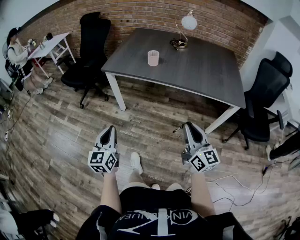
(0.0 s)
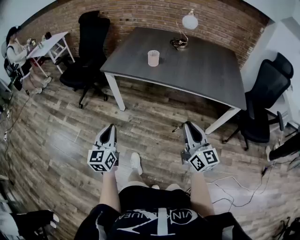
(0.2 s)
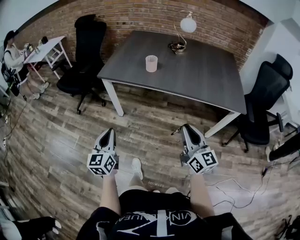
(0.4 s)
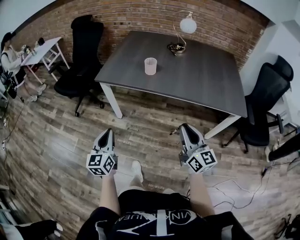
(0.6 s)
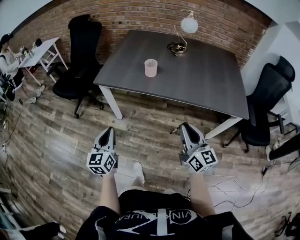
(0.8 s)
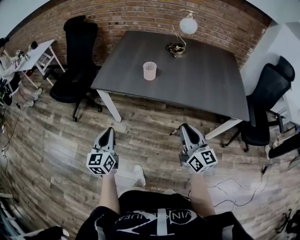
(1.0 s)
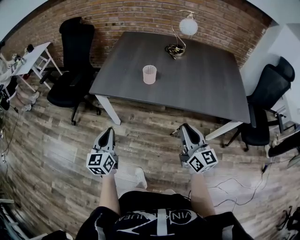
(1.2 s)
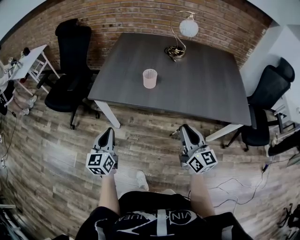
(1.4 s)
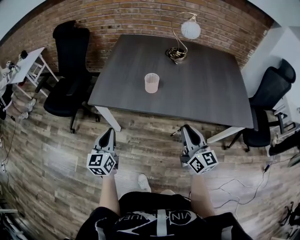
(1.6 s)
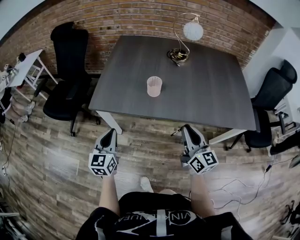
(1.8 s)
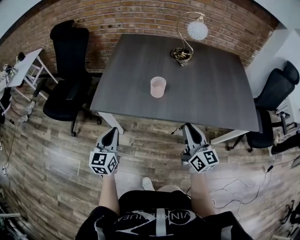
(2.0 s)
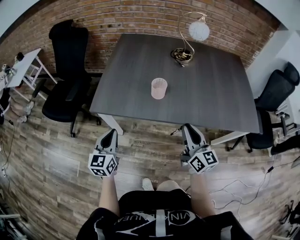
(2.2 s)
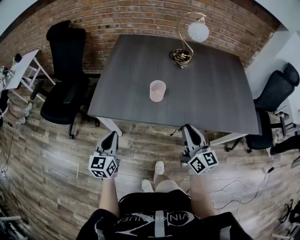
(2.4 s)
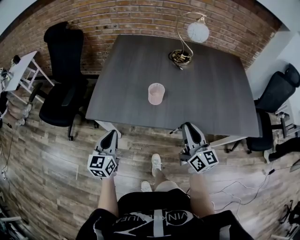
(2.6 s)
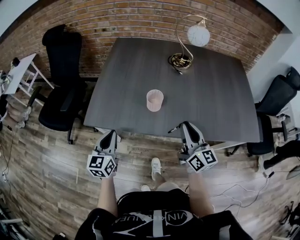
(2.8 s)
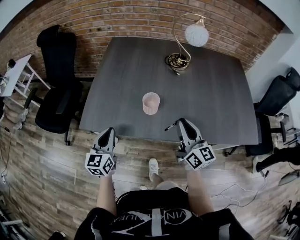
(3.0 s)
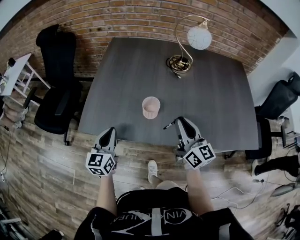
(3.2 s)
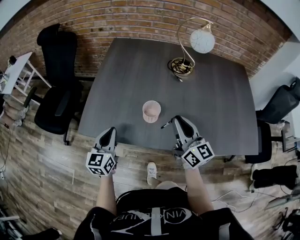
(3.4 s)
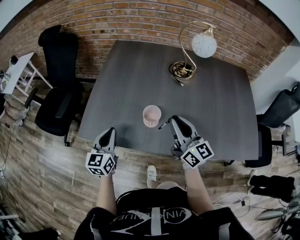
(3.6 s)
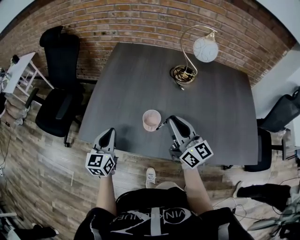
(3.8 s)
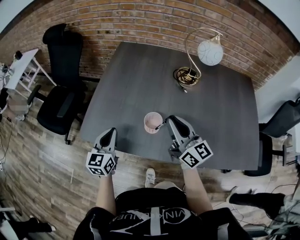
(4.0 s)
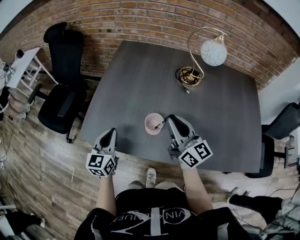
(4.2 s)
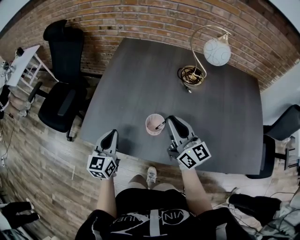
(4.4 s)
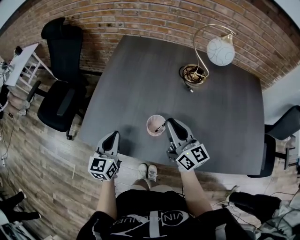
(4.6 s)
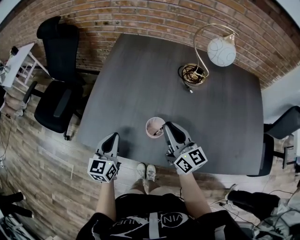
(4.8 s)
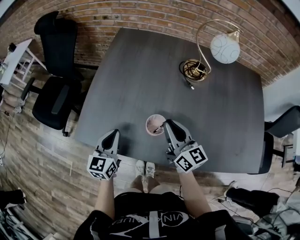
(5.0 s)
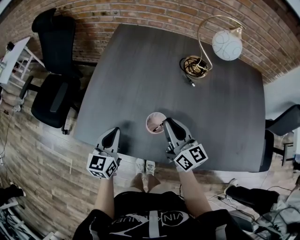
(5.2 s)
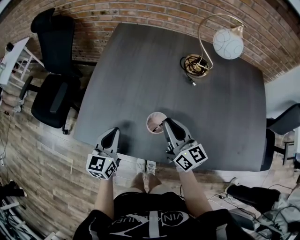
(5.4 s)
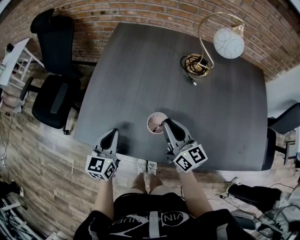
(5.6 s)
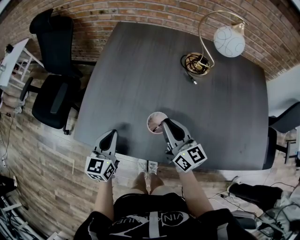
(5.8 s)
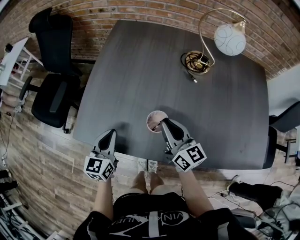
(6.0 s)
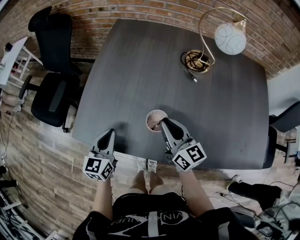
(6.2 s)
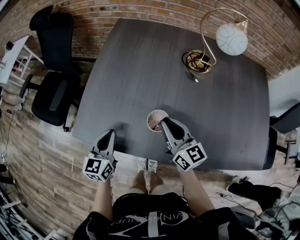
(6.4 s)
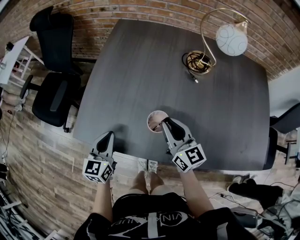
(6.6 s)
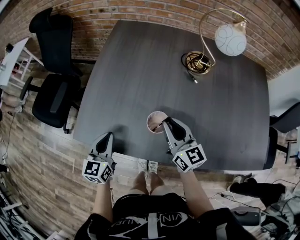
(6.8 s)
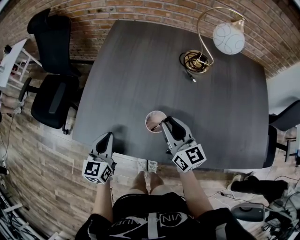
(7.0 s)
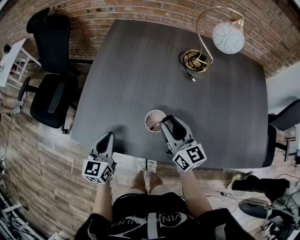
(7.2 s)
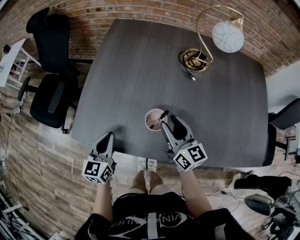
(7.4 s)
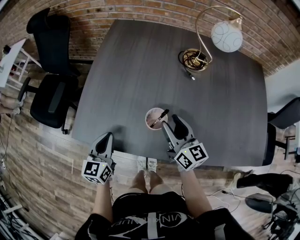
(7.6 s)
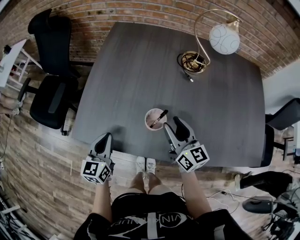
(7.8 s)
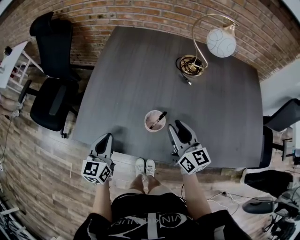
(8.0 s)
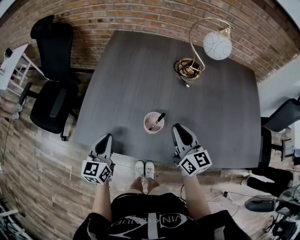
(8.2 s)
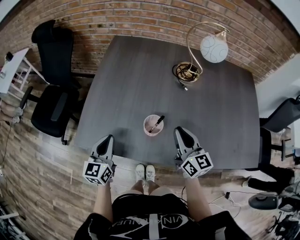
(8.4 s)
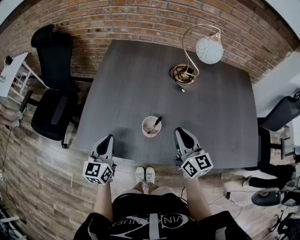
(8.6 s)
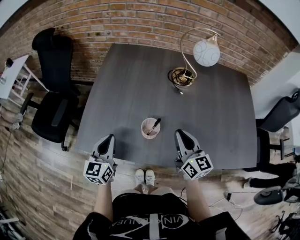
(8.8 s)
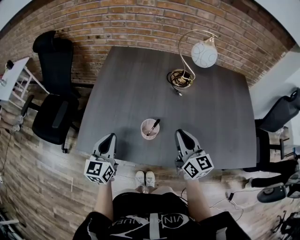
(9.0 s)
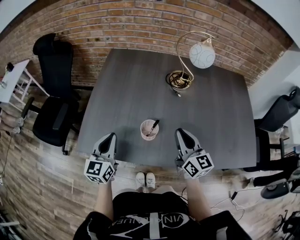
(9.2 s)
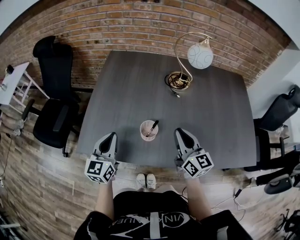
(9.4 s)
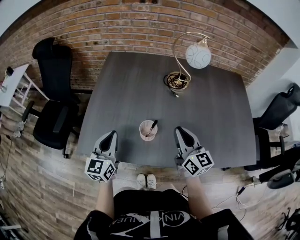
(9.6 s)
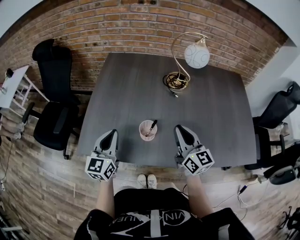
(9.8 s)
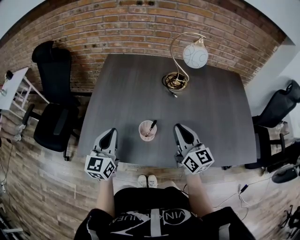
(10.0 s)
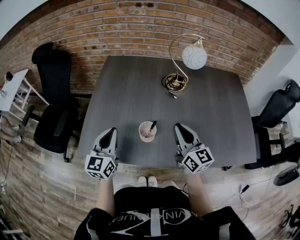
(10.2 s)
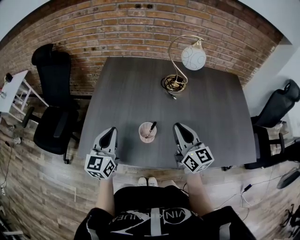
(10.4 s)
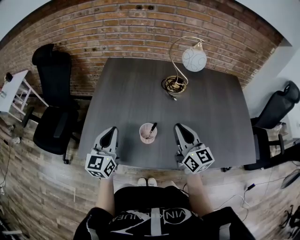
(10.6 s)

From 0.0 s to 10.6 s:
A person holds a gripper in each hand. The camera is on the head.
From 0.0 s to 1.6 s: Both grippers move forward, about 30 cm.
From 1.6 s to 3.0 s: Both grippers travel together forward, about 20 cm.
From 3.0 s to 4.6 s: The left gripper heads forward, covering about 10 cm, while the right gripper heads forward, covering about 15 cm.
From 4.6 s to 6.0 s: The right gripper shifts roughly 5 cm downward.
From 6.0 s to 7.6 s: The right gripper opens.
From 7.6 s to 9.0 s: The right gripper moves upward and to the right, about 10 cm, and closes up, while the left gripper shifts roughly 10 cm upward.
From 9.0 s to 10.6 s: The left gripper moves upward, roughly 5 cm.

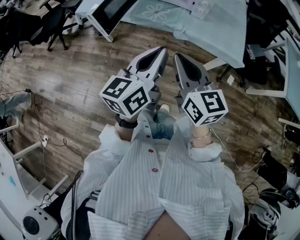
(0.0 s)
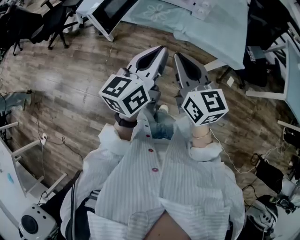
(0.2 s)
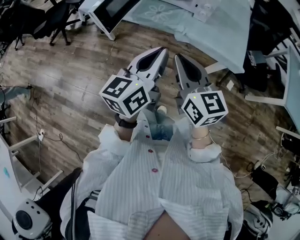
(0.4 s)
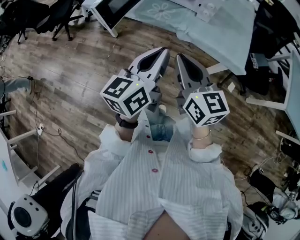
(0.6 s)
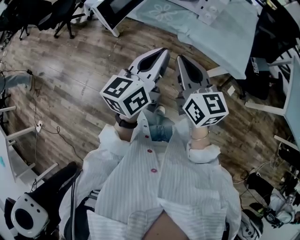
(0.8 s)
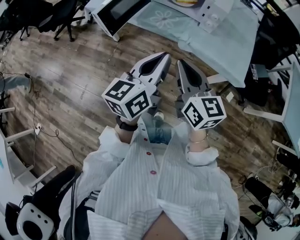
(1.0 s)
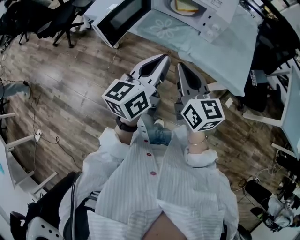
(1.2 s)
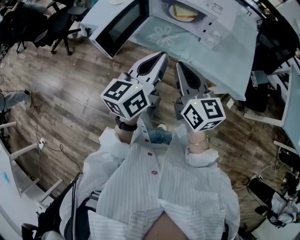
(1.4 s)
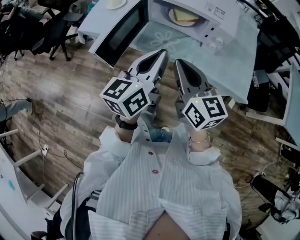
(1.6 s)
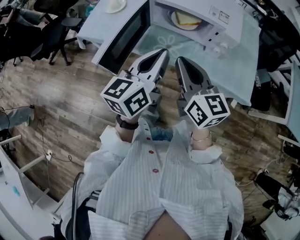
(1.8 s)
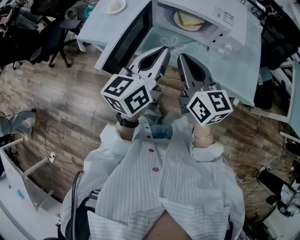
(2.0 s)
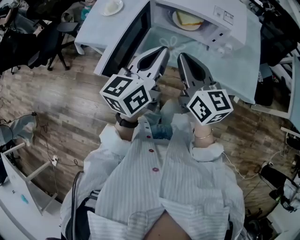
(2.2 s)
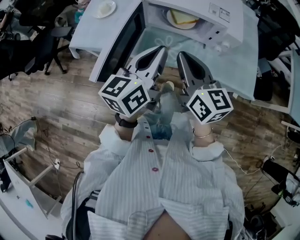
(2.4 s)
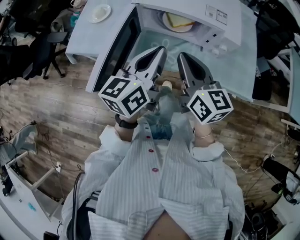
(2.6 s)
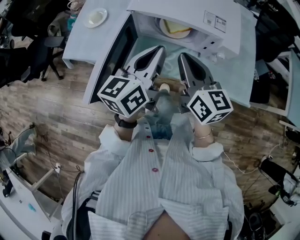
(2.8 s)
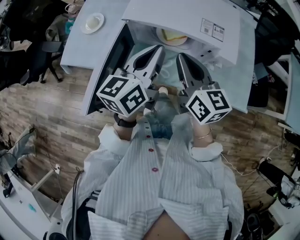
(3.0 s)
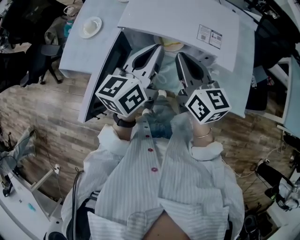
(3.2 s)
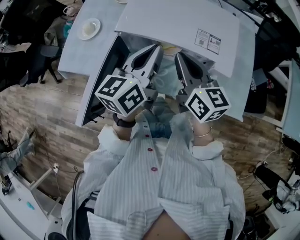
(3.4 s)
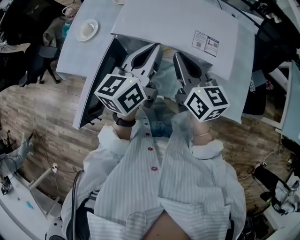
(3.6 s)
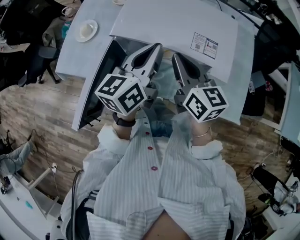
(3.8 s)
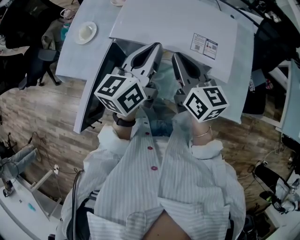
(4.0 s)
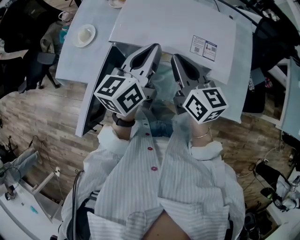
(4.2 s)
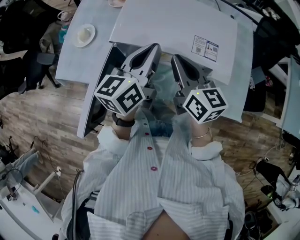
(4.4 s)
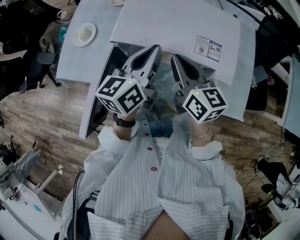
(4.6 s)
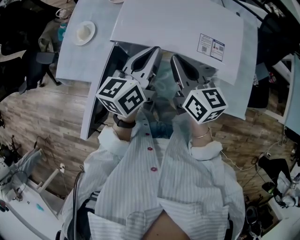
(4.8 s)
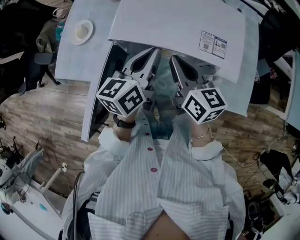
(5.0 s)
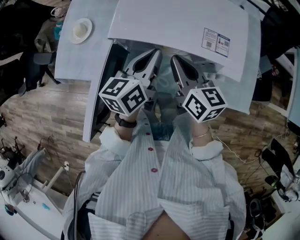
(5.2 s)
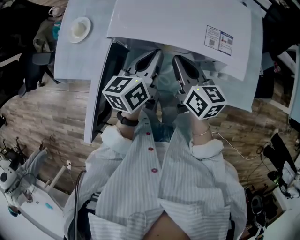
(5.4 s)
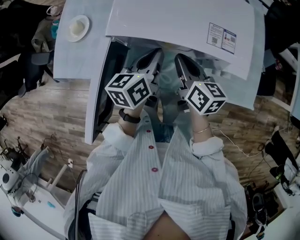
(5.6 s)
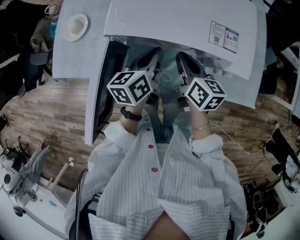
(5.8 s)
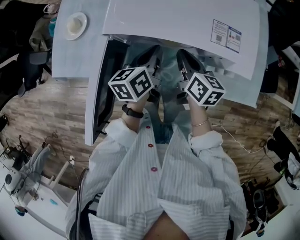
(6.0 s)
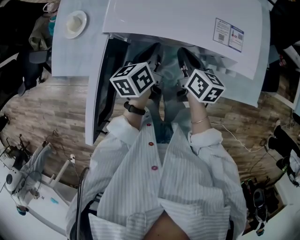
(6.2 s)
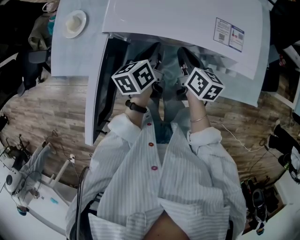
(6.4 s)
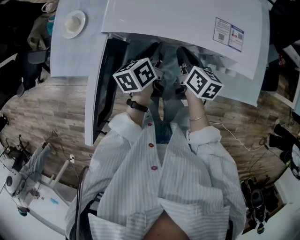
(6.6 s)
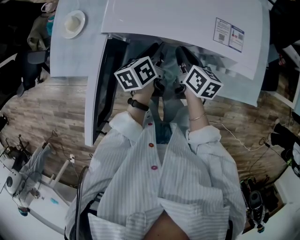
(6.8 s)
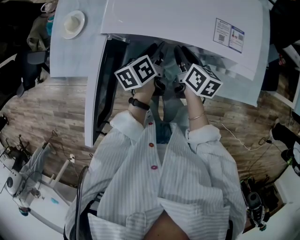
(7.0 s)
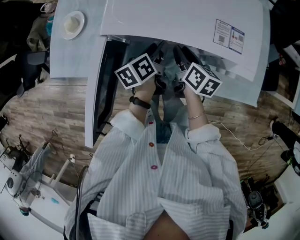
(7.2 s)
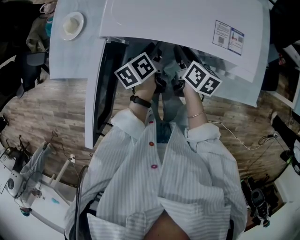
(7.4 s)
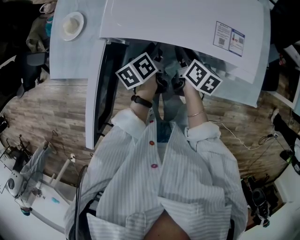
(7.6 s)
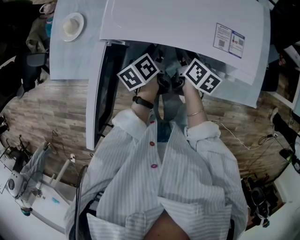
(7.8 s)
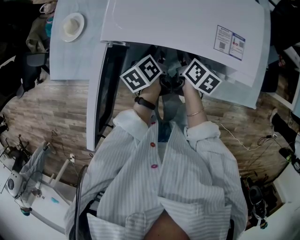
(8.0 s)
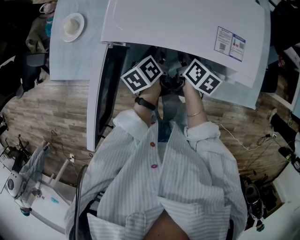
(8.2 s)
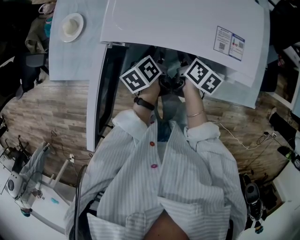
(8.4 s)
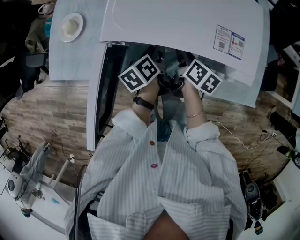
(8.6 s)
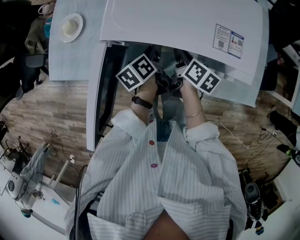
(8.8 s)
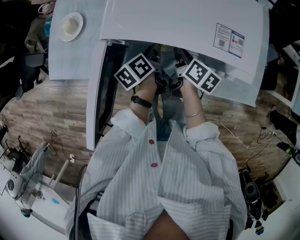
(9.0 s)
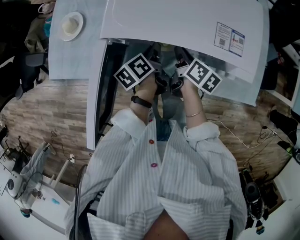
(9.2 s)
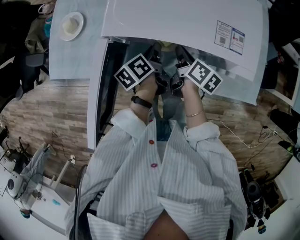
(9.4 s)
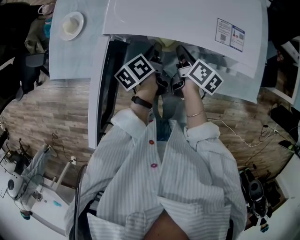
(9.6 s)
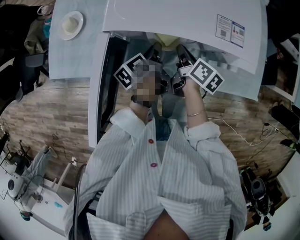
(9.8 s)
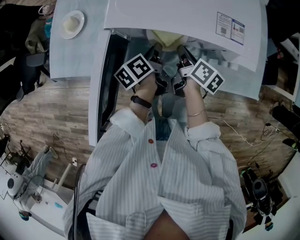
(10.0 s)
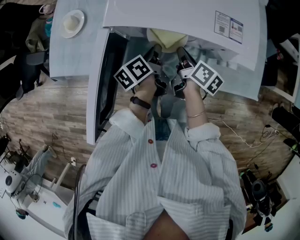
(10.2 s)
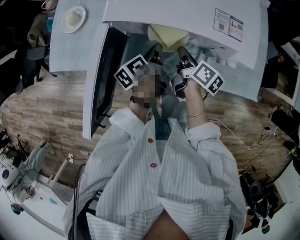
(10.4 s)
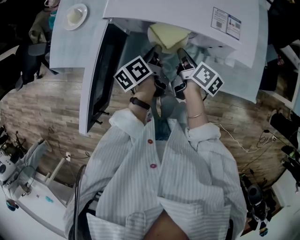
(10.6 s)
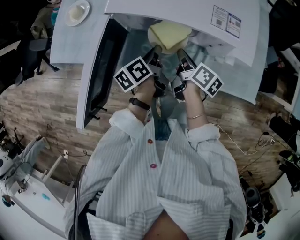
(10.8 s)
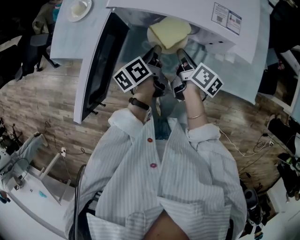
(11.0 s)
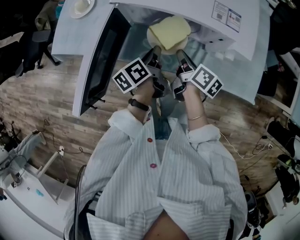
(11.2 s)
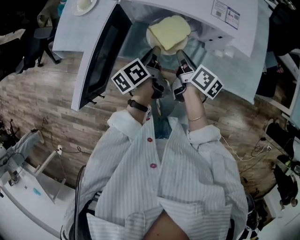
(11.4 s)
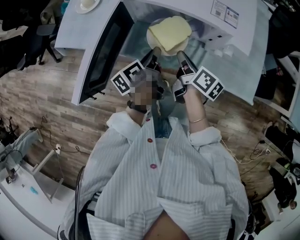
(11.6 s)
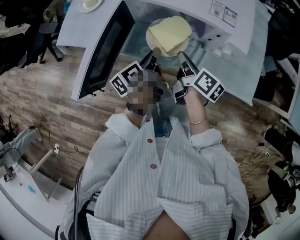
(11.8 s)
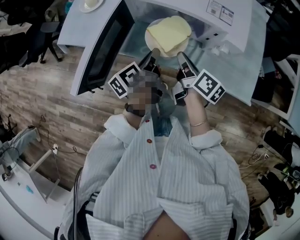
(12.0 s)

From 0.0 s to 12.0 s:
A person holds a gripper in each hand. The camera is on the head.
From 0.0 s to 1.6 s: Both grippers move forward, roughly 20 cm.
From 1.6 s to 3.0 s: The grippers both shift forward by some 20 cm.
From 3.0 s to 4.4 s: The grippers both shift forward by about 10 cm.
From 4.4 s to 6.0 s: The grippers both shift downward by roughly 15 cm. The left gripper turns by roughly 20 degrees; the right gripper swivels some 20 degrees.
From 6.0 s to 7.6 s: The two grippers go some 5 cm downward. The left gripper opens. The right gripper opens up.
From 7.6 s to 9.0 s: The right gripper closes; the left gripper closes.
From 9.0 s to 10.4 s: The grippers make only small movements.
From 10.4 s to 12.0 s: Both grippers move backward and upward, roughly 10 cm.

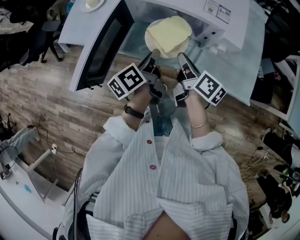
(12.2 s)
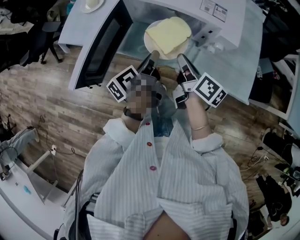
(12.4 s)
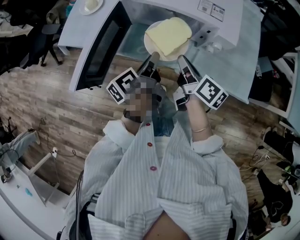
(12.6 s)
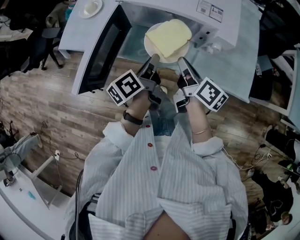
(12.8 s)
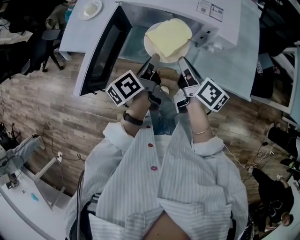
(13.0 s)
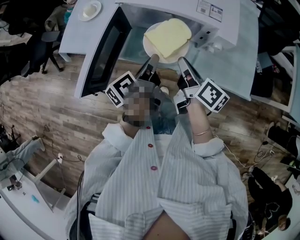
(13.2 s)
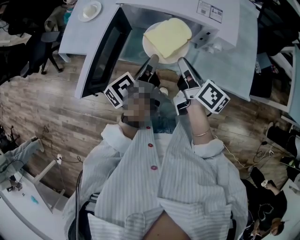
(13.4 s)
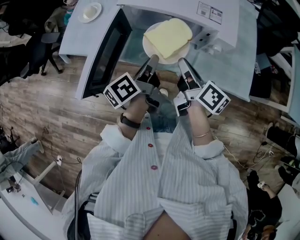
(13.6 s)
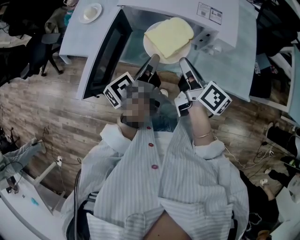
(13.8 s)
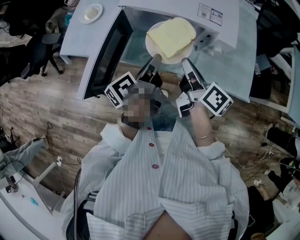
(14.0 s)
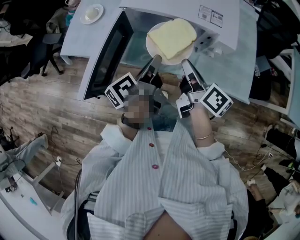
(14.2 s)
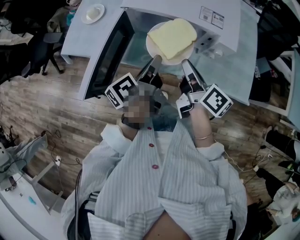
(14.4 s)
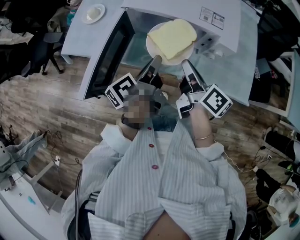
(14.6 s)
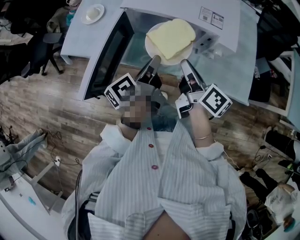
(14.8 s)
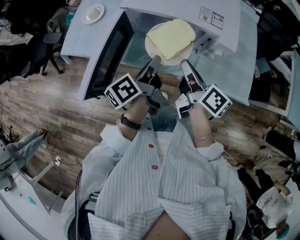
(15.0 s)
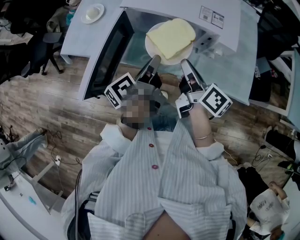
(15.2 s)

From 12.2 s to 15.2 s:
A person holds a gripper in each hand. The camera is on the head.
From 12.2 s to 13.8 s: The two grippers go about 5 cm upward.
From 13.8 s to 15.2 s: The grippers stay close to where they were, moving slightly.
